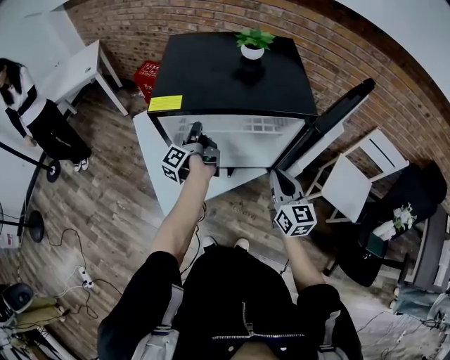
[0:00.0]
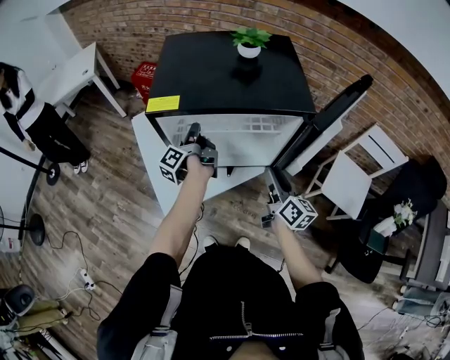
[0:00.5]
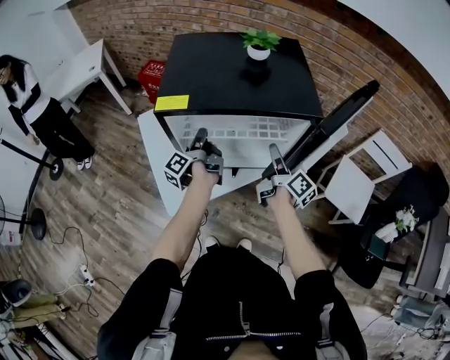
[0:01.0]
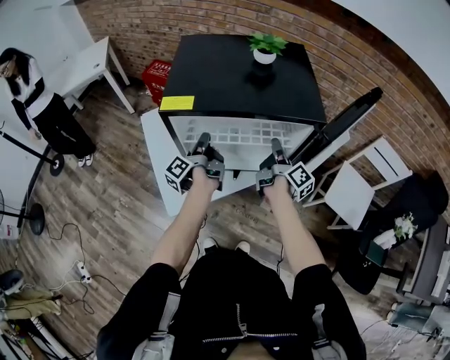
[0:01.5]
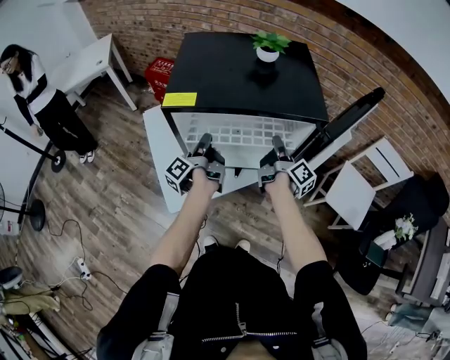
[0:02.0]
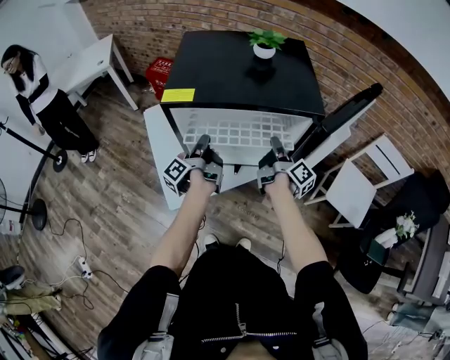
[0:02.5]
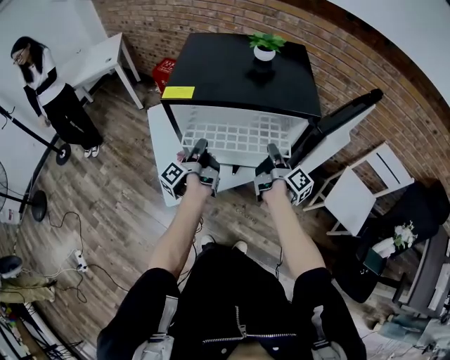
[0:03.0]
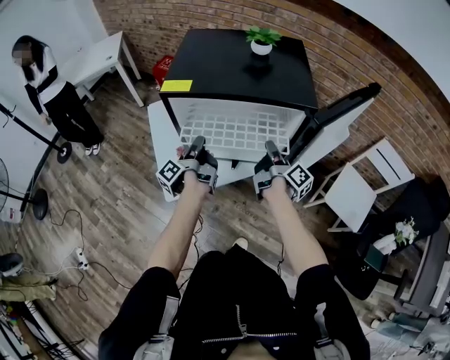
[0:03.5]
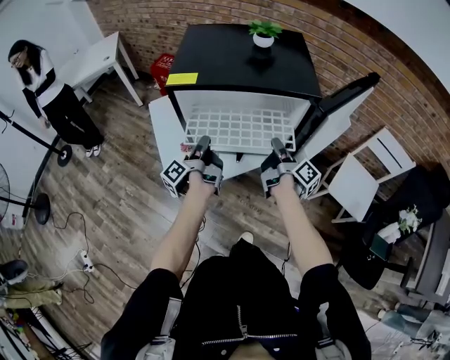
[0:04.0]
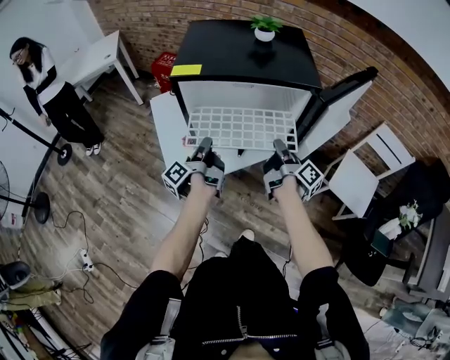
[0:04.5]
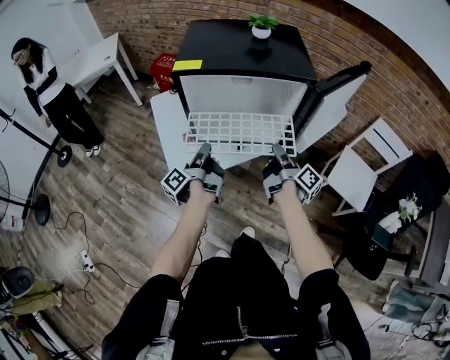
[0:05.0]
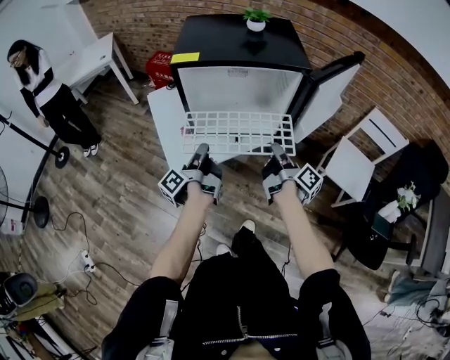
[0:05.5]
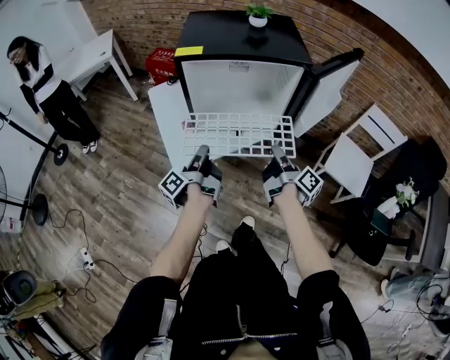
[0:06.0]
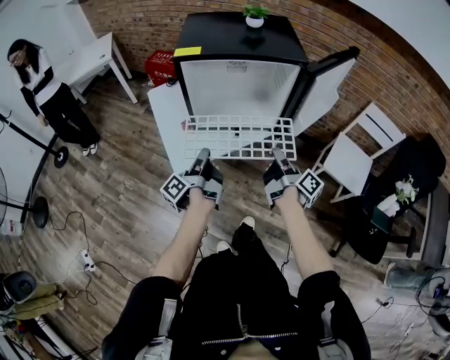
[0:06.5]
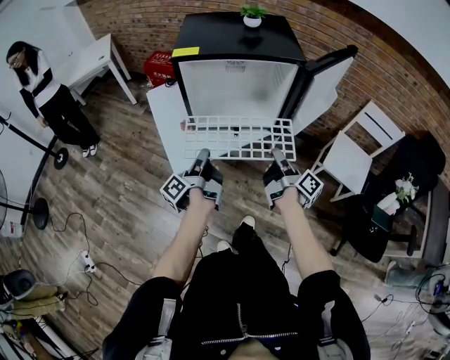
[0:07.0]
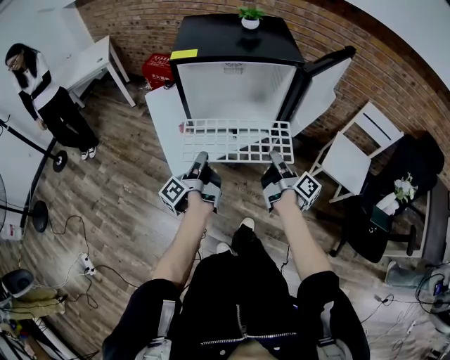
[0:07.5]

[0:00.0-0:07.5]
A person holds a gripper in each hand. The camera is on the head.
0:00.0 to 0:02.0: The right gripper shifts roughly 15 cm forward, rolls clockwise, seen from behind, by about 70 degrees, and opens, then closes once more.
0:02.0 to 0:04.0: Both grippers move backward, roughly 10 cm.
0:04.0 to 0:05.5: Both grippers move backward, some 10 cm.
0:05.5 to 0:07.5: The right gripper shifts some 5 cm backward.

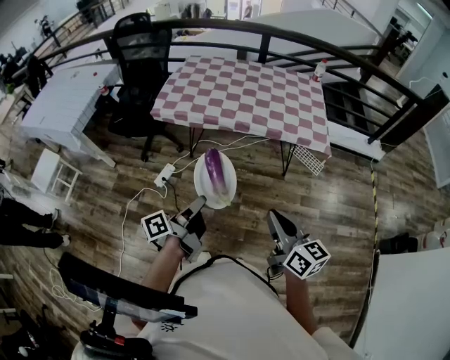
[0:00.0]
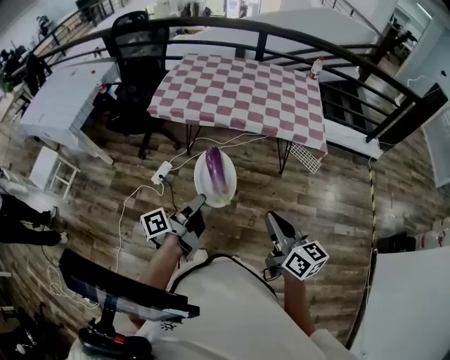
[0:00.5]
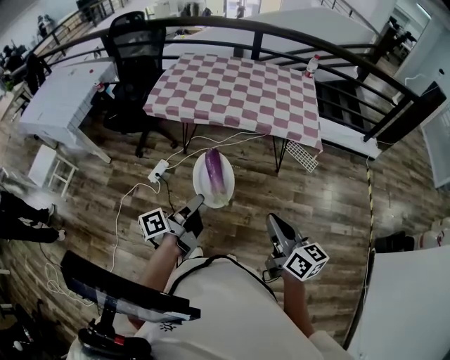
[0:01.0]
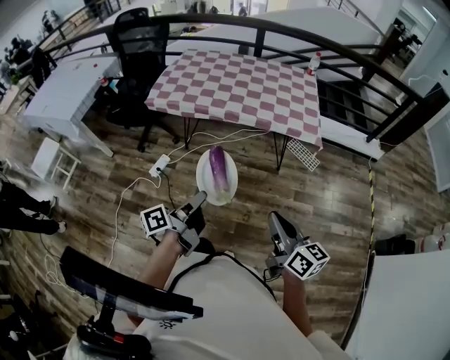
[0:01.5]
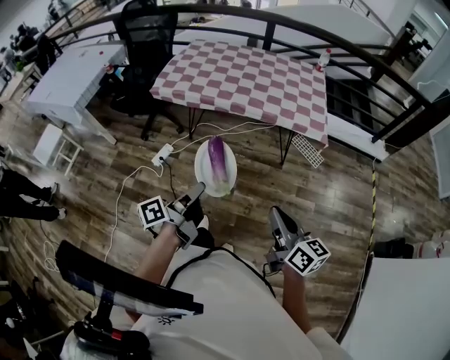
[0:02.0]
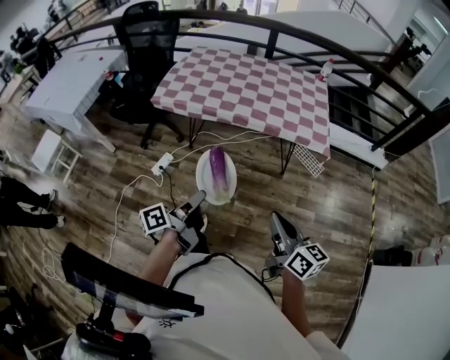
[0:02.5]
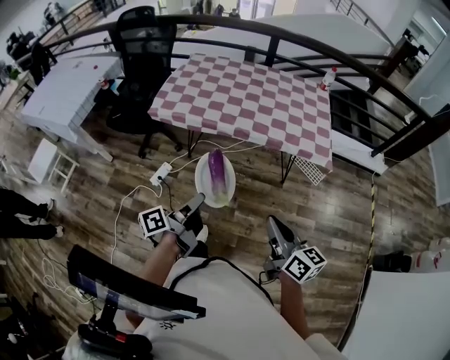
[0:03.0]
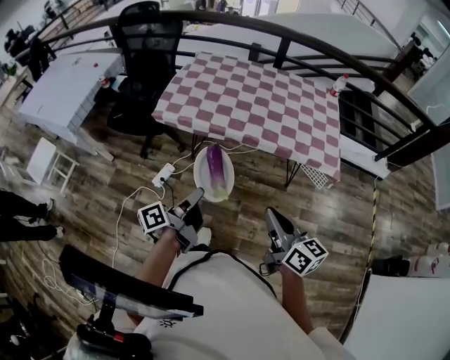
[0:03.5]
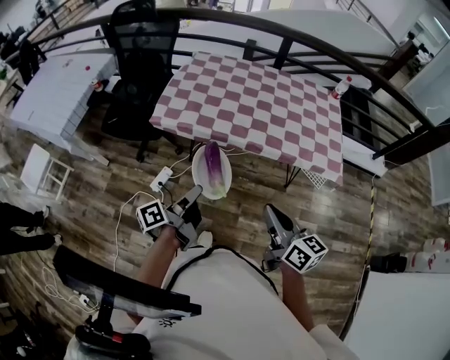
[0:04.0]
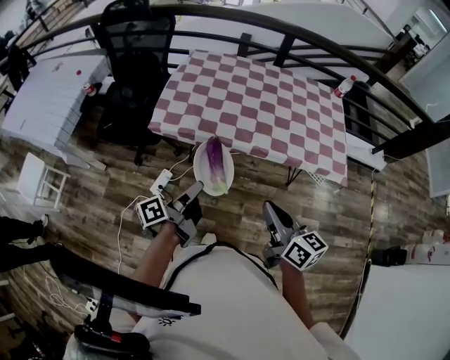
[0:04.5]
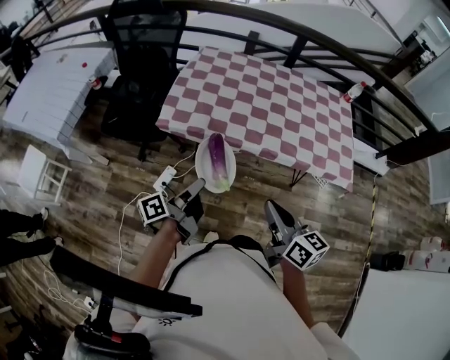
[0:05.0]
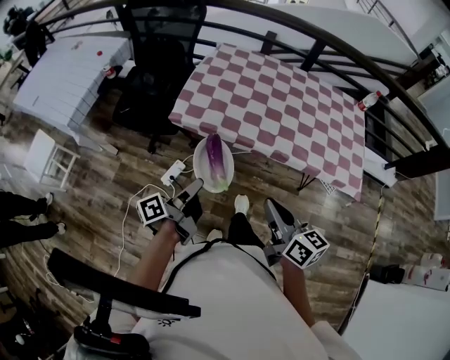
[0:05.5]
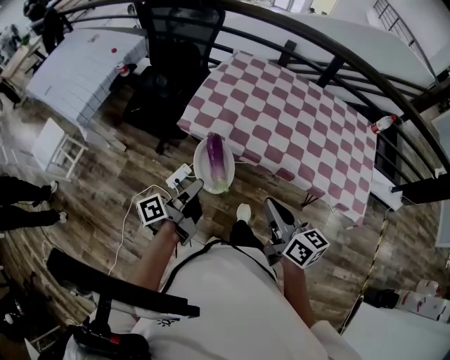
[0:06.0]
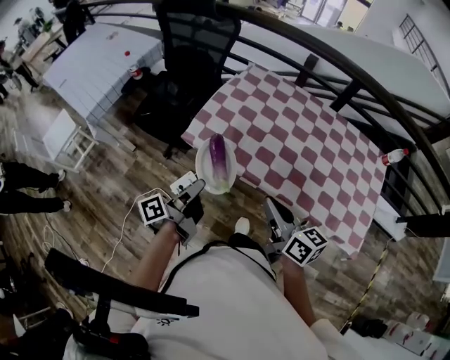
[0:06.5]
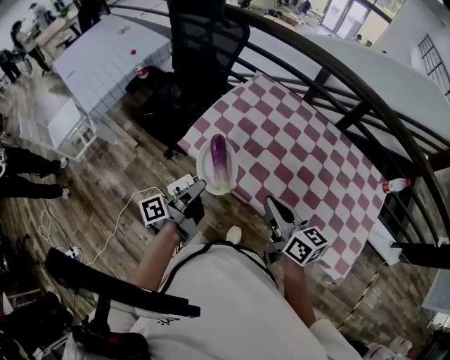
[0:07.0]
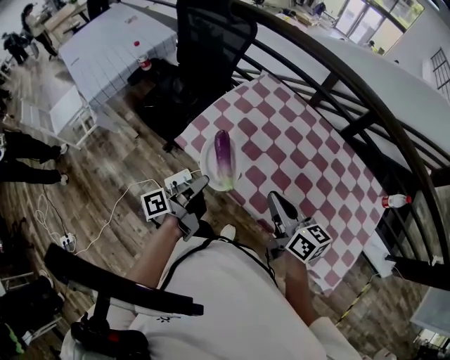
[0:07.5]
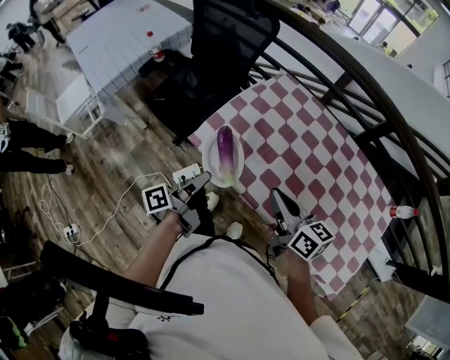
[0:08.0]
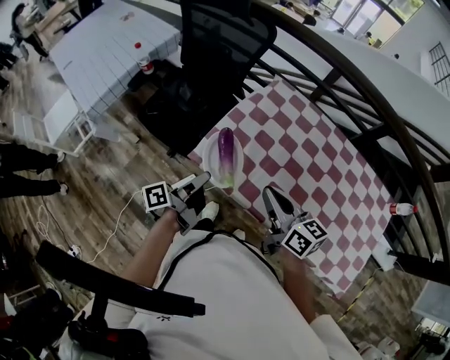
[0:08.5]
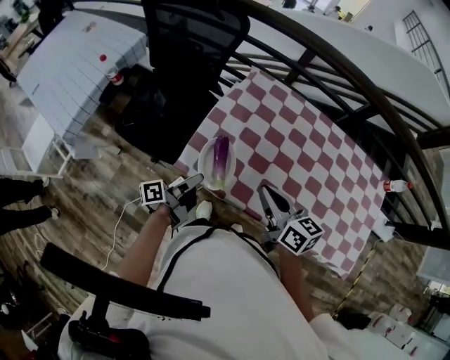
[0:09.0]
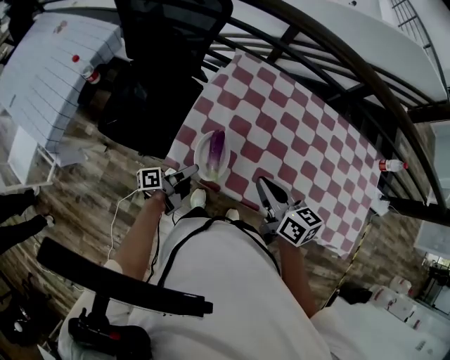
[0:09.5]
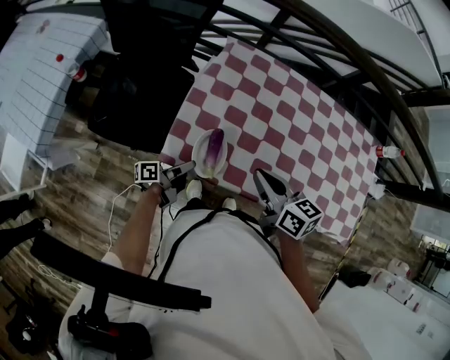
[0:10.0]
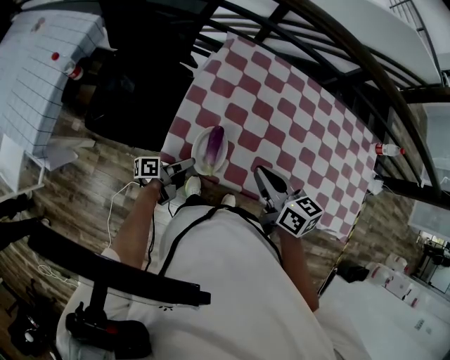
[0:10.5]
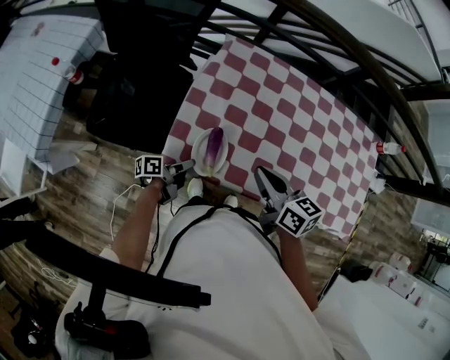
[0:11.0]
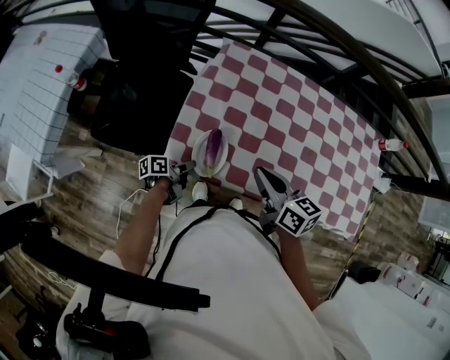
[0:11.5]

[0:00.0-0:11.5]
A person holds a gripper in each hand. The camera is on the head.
0:00.0 to 0:02.0: The right gripper ends up roughly 10 cm from where it was.
0:02.0 to 0:04.0: The right gripper changes place by roughly 30 cm.
0:04.0 to 0:06.0: The right gripper moves about 20 cm.
0:06.0 to 0:07.5: The right gripper shifts by some 25 cm.
0:07.5 to 0:09.5: The right gripper shifts by about 20 cm.

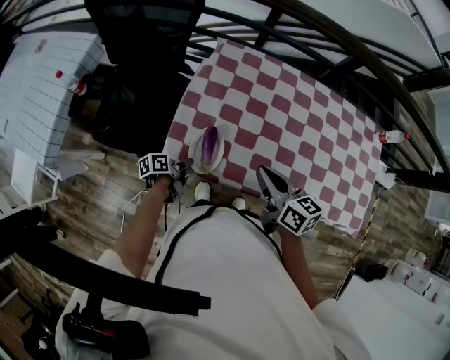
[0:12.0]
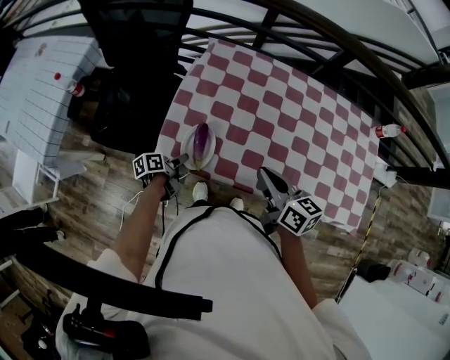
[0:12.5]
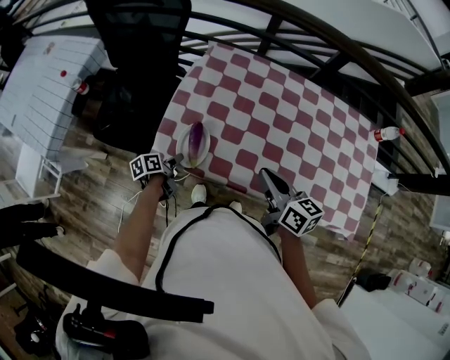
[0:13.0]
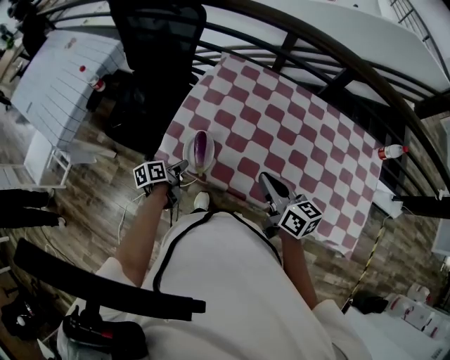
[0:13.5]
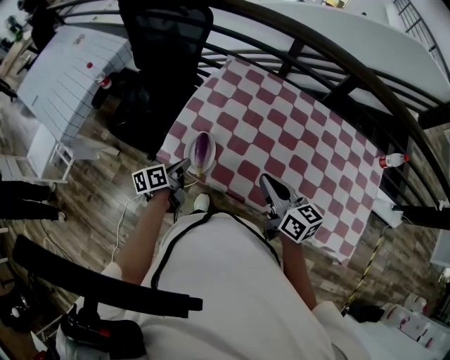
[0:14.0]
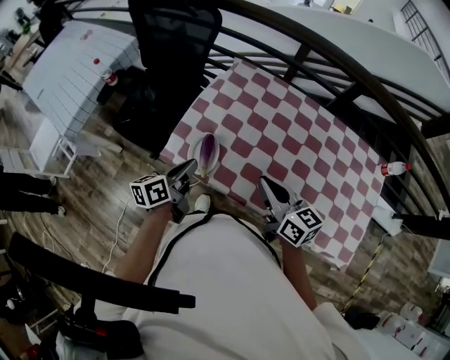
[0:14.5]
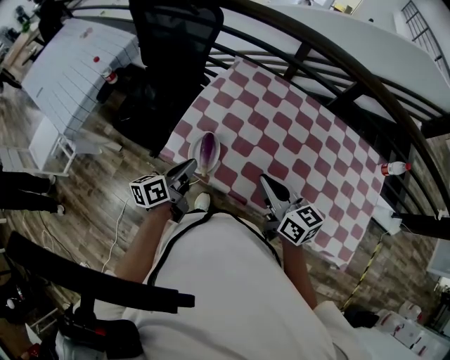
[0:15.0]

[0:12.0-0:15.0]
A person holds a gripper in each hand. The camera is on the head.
0:12.0 to 0:13.5: The right gripper changes place by approximately 10 cm.

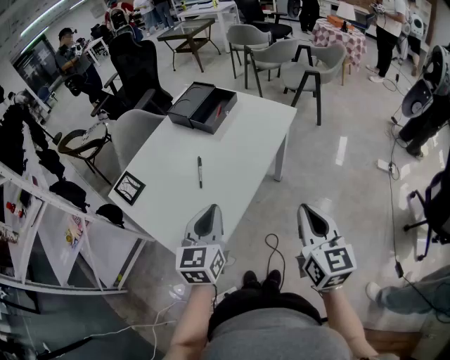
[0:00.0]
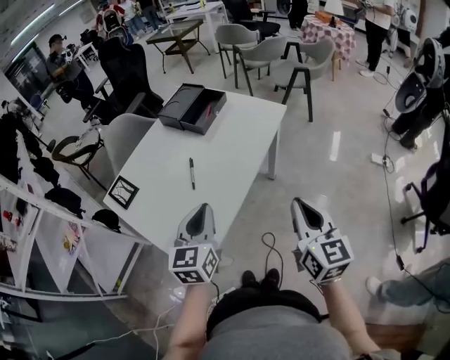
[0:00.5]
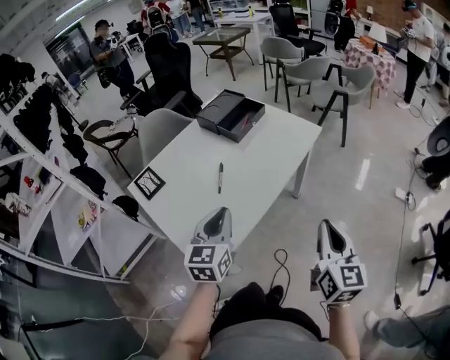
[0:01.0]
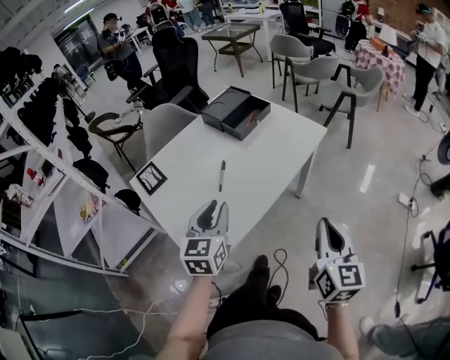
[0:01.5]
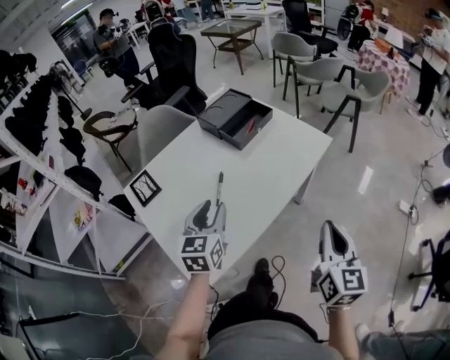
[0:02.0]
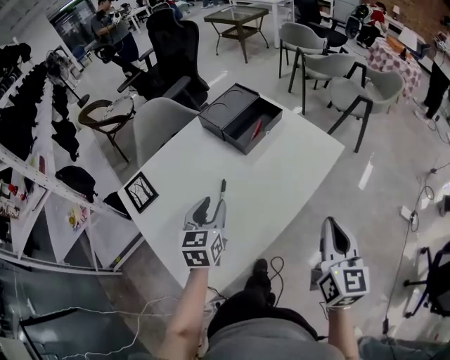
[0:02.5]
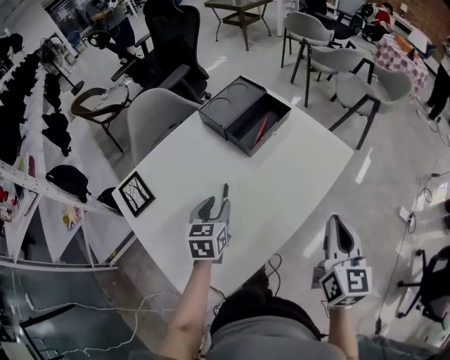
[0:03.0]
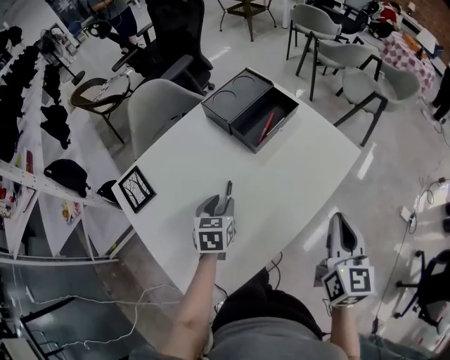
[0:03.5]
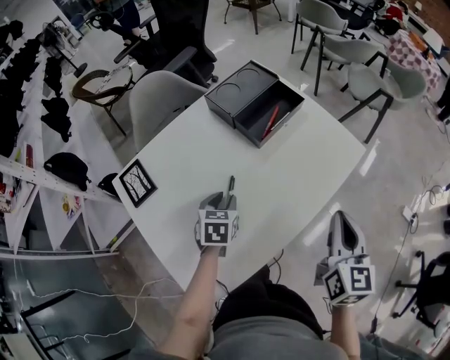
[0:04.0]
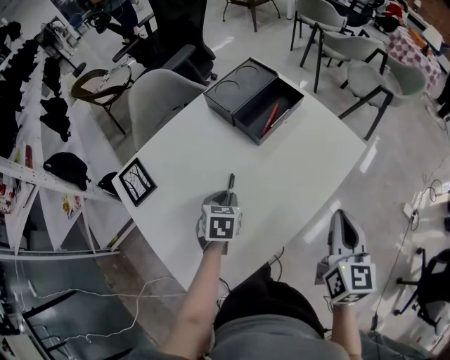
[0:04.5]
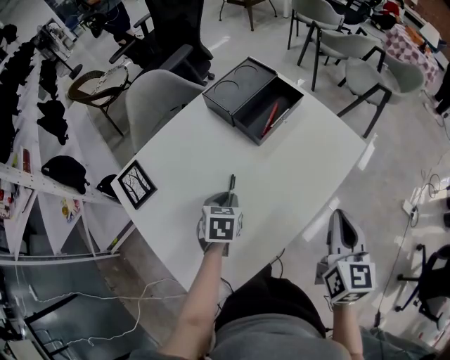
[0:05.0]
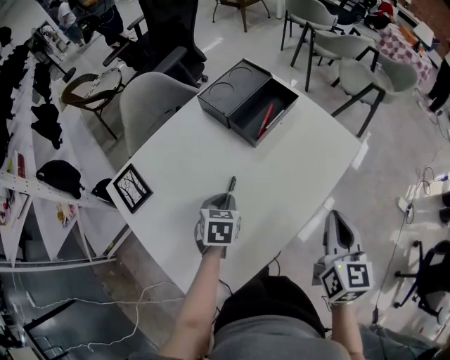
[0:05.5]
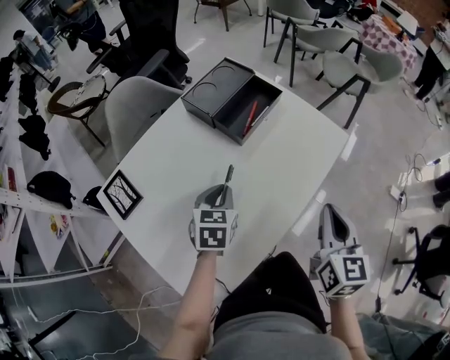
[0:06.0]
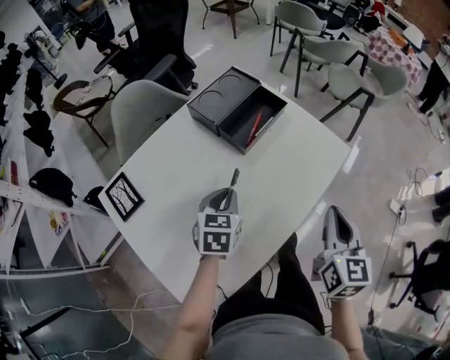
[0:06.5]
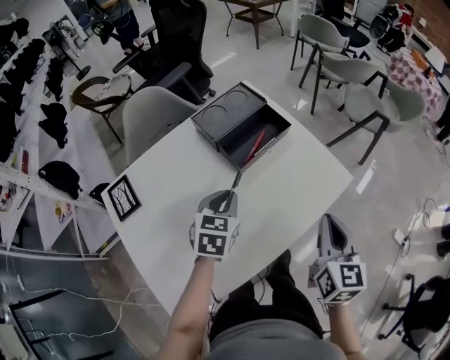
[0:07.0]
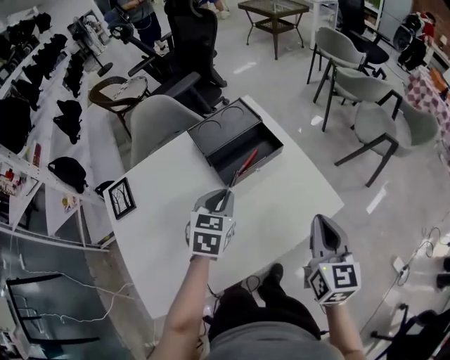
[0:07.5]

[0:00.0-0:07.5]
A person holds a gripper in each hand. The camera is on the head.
0:00.0 to 0:02.0: The grippers both shift forward by approximately 10 cm. The left gripper opens its fingers.
0:02.0 to 0:04.0: The right gripper is displaced forward by some 15 cm; the left gripper heads downward and forward, covering roughly 20 cm, and turns by some 30 degrees.
0:04.0 to 0:05.5: The left gripper closes.
0:05.5 to 0:07.5: The left gripper travels forward, upward and to the right by about 20 cm; the right gripper goes approximately 20 cm forward and to the right.
